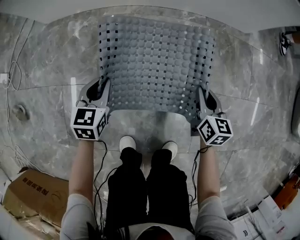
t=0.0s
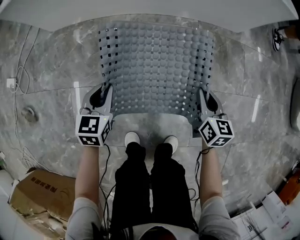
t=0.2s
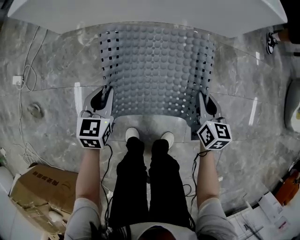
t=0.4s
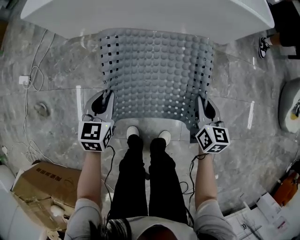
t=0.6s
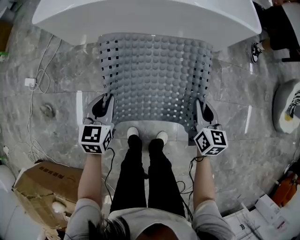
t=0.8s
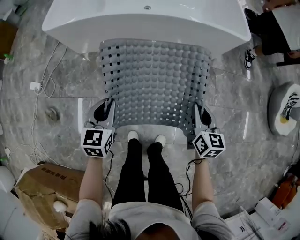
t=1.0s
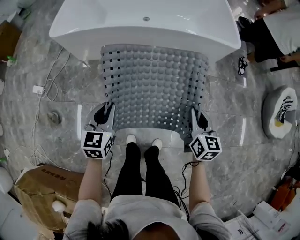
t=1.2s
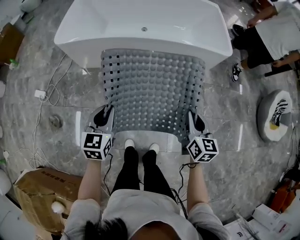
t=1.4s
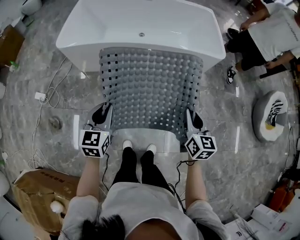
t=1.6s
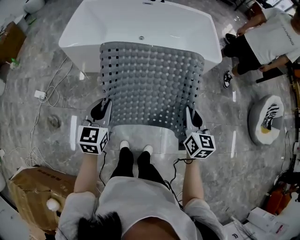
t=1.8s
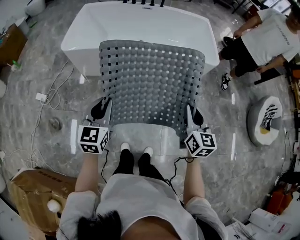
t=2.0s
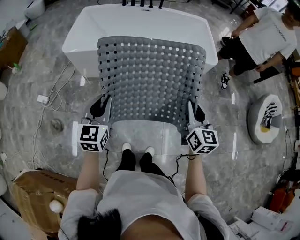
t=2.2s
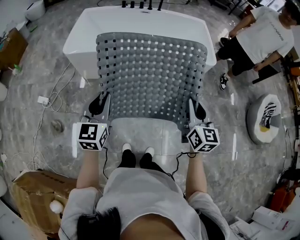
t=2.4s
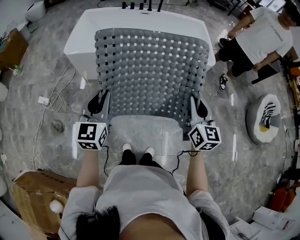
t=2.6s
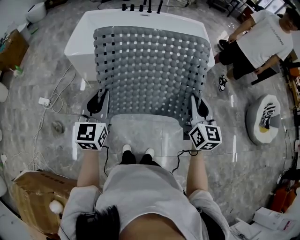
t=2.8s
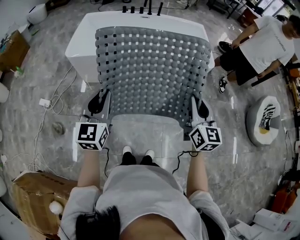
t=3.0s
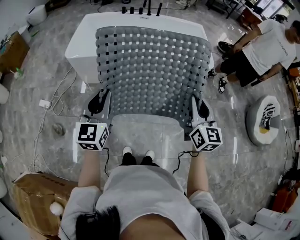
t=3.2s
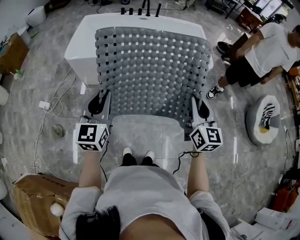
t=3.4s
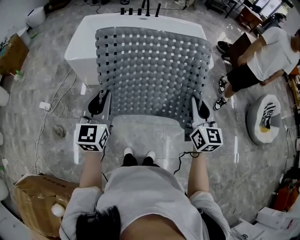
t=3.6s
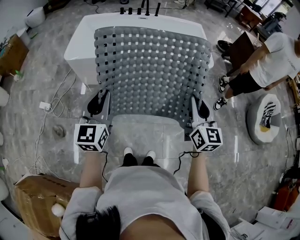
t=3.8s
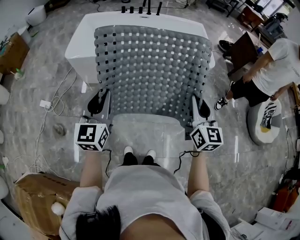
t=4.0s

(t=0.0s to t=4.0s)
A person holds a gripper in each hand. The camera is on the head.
t=0.0s - t=1.4s: The two grippers go some 60 cm upward.
t=1.4s - t=2.6s: The grippers both shift upward by approximately 20 cm.
t=2.6s - t=4.0s: The grippers stay close to where they were, moving slightly.

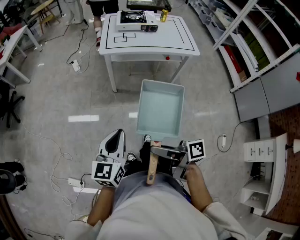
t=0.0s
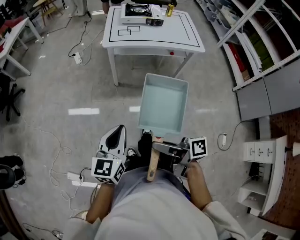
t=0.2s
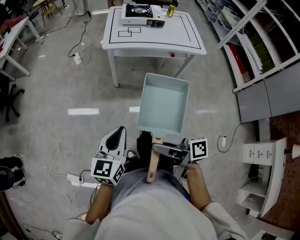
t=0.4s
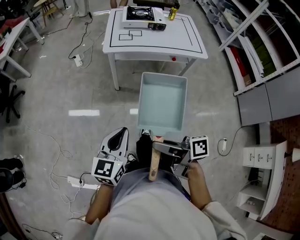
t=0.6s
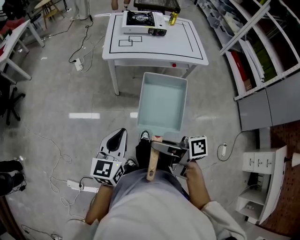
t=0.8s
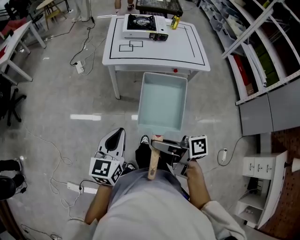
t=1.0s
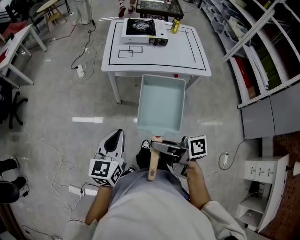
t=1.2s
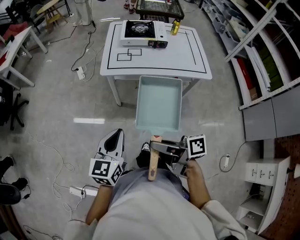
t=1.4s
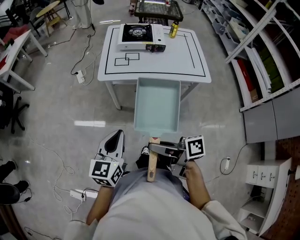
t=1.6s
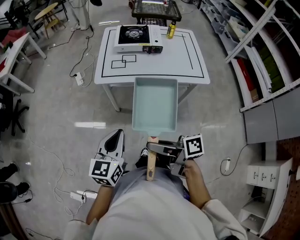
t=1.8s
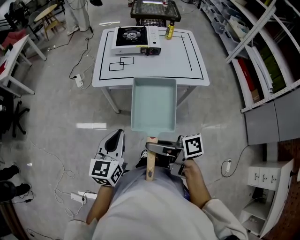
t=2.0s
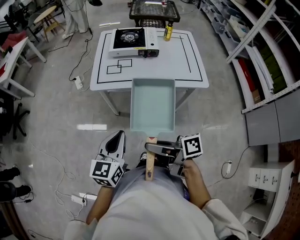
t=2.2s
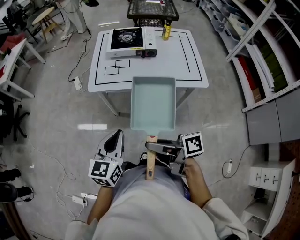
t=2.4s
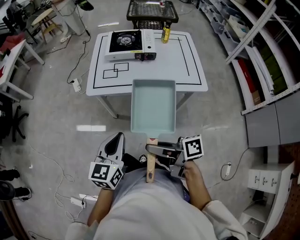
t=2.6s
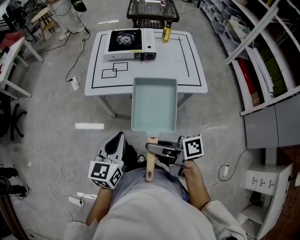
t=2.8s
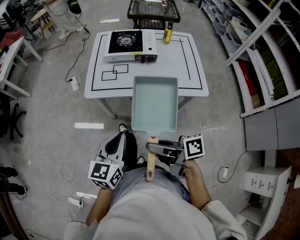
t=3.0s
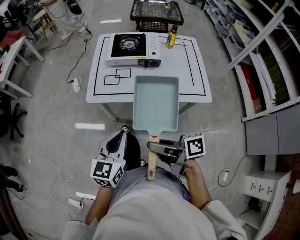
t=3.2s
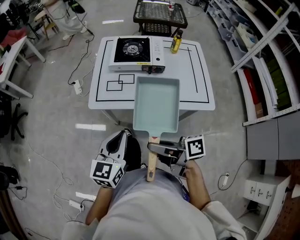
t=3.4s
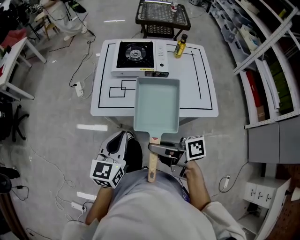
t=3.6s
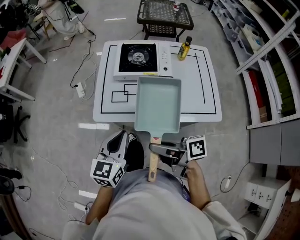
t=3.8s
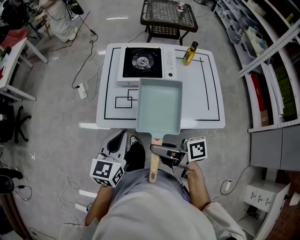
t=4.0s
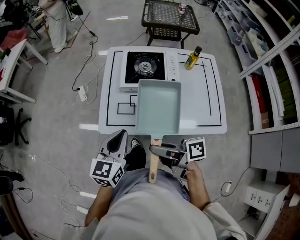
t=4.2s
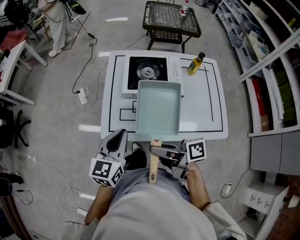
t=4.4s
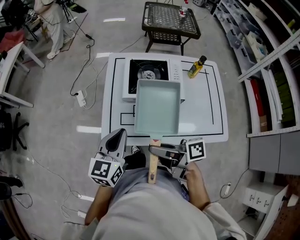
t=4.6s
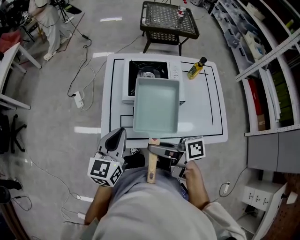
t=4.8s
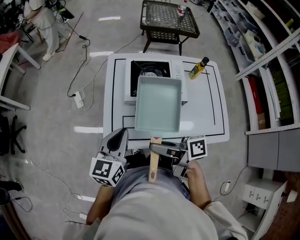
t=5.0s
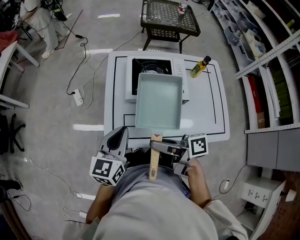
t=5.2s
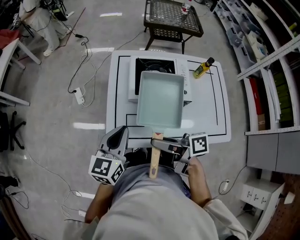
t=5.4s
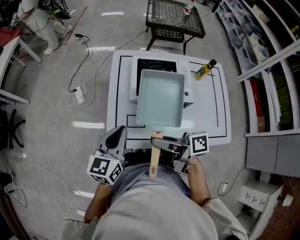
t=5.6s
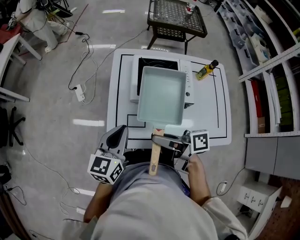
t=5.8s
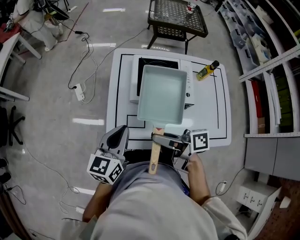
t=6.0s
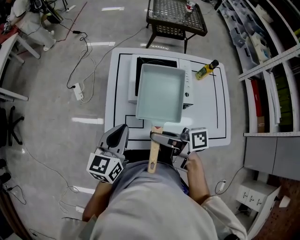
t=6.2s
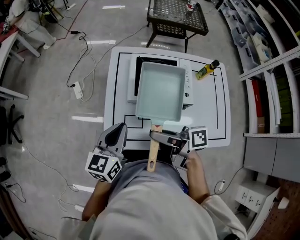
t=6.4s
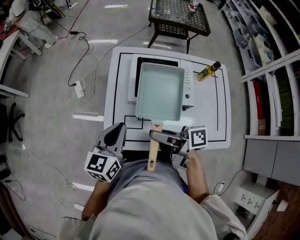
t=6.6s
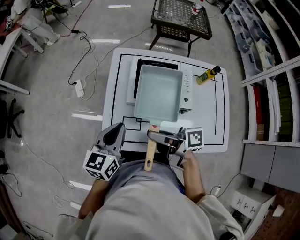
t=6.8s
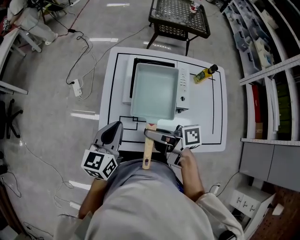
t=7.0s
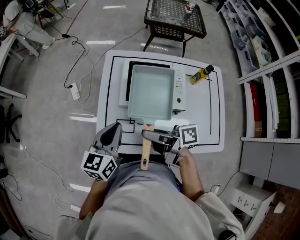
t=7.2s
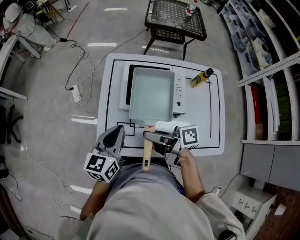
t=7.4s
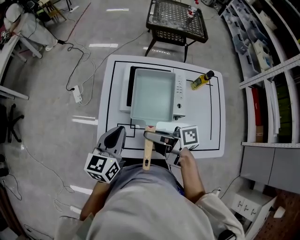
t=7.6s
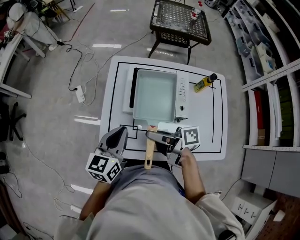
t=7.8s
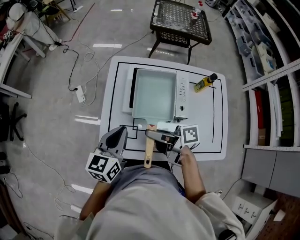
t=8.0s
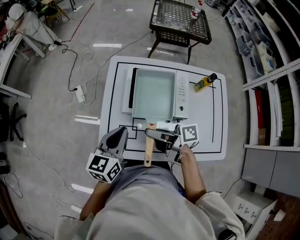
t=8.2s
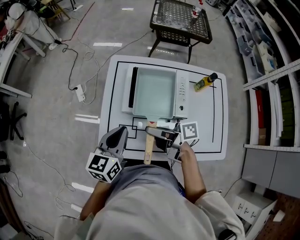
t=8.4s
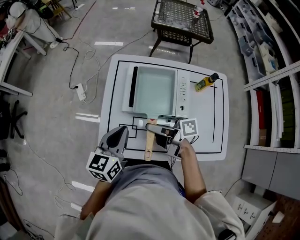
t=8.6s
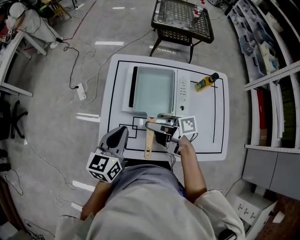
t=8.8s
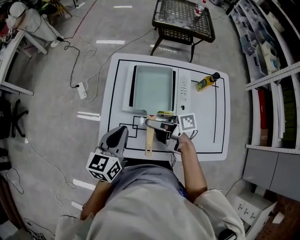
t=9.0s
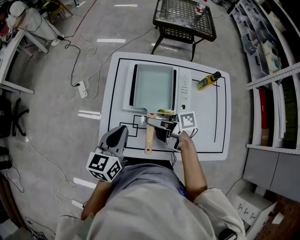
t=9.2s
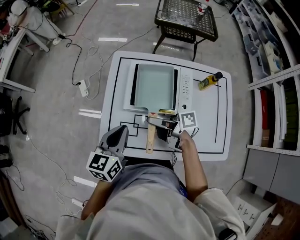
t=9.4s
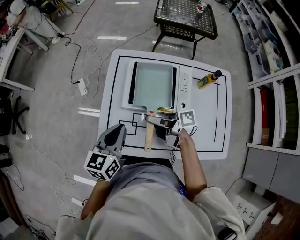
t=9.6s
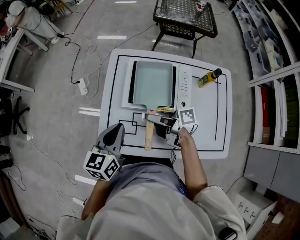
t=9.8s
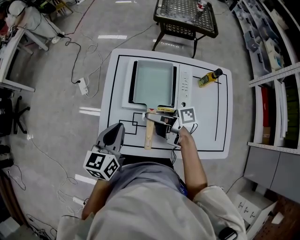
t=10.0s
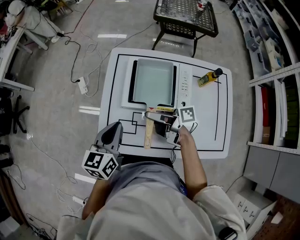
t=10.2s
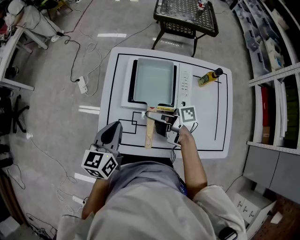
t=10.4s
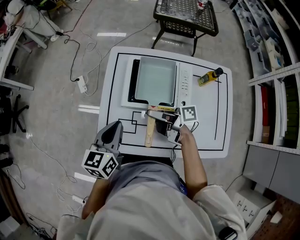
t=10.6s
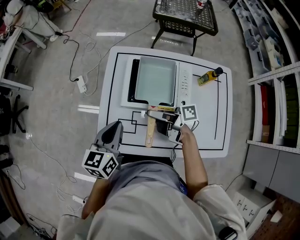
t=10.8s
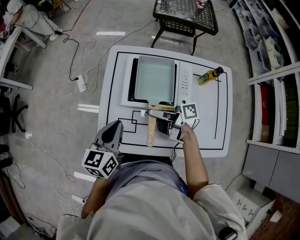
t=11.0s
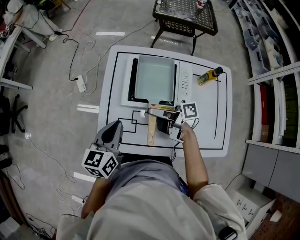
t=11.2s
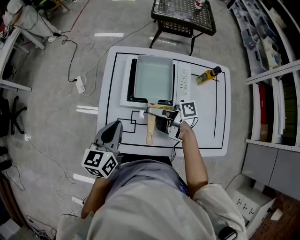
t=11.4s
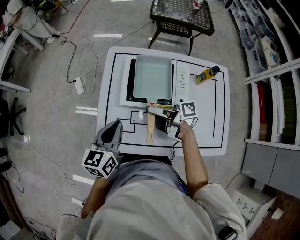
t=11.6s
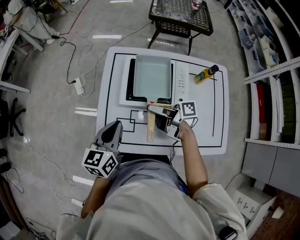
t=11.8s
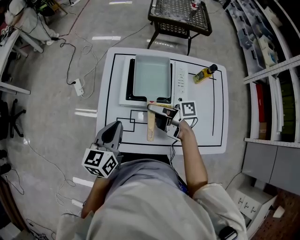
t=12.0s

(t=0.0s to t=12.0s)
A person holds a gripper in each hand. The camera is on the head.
t=0.0s - t=1.6s: Both grippers move forward and to the right, some 25 cm.
t=1.6s - t=3.0s: The grippers both shift to the right and forward by some 15 cm.
t=3.0s - t=4.4s: The grippers both shift forward by roughly 30 cm.
t=4.4s - t=6.0s: Both grippers travel together forward, about 10 cm.
t=6.0s - t=7.6s: Both grippers move to the right, approximately 5 cm.
t=7.6s - t=9.0s: The right gripper moves roughly 5 cm.
t=9.0s - t=12.0s: The grippers make only small movements.

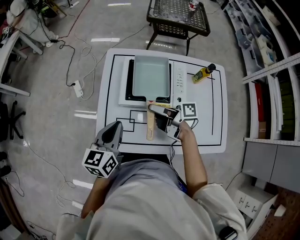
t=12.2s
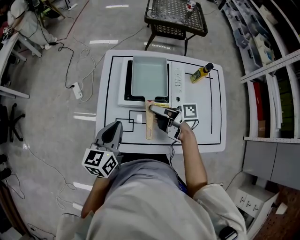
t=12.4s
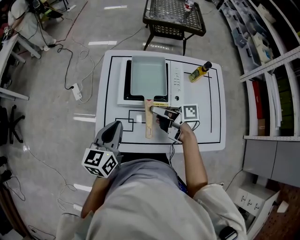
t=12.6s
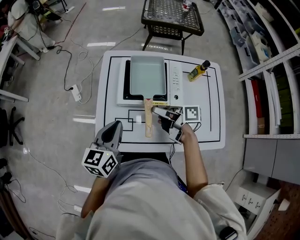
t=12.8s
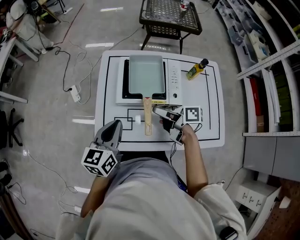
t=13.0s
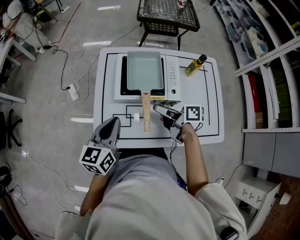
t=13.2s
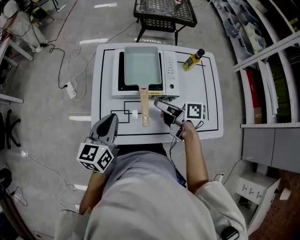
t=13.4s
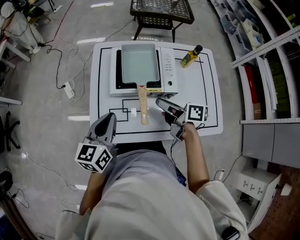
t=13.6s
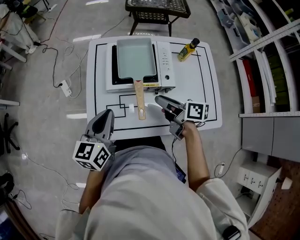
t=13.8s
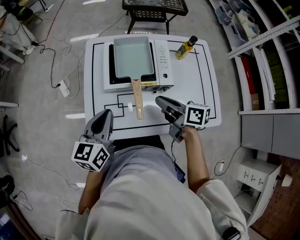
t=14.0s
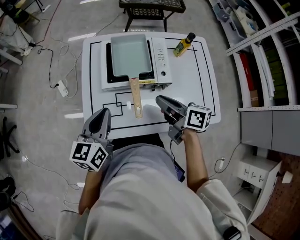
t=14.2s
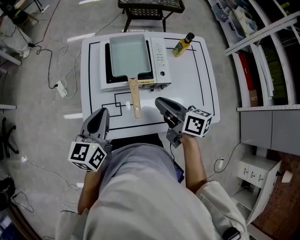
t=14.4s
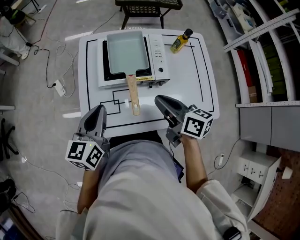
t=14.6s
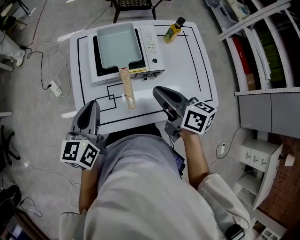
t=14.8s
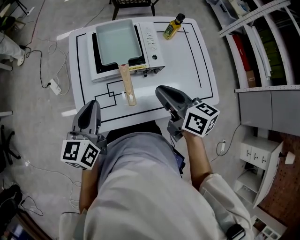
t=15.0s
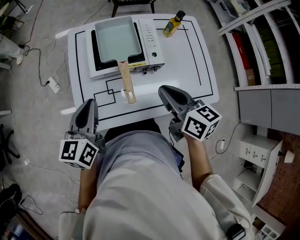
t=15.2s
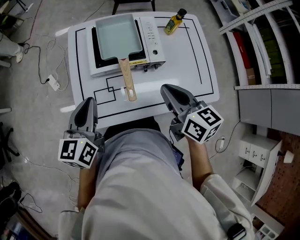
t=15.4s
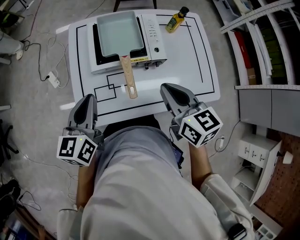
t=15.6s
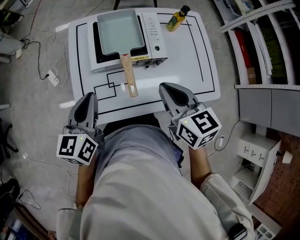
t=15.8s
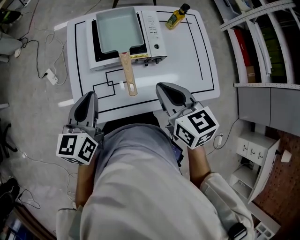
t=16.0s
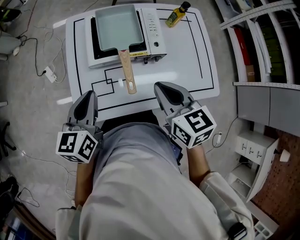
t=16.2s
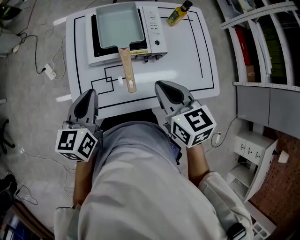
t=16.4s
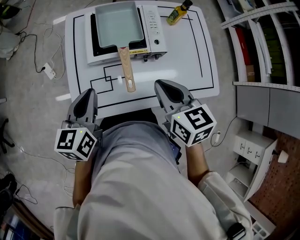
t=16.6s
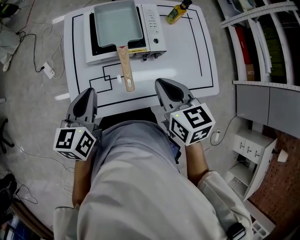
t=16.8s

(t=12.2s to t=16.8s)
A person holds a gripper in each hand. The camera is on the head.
t=12.2s - t=13.8s: The right gripper shifts approximately 10 cm backward and to the right, turns by roughly 30 degrees, and closes up.
t=13.8s - t=15.2s: The right gripper heads upward and backward, covering some 10 cm, changes its angle by about 30 degrees, and closes.
t=15.2s - t=16.8s: The right gripper turns by some 20 degrees.

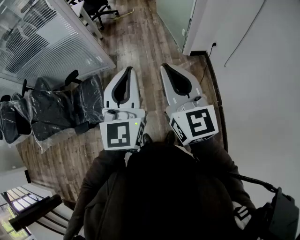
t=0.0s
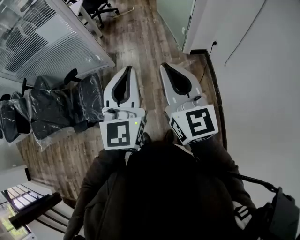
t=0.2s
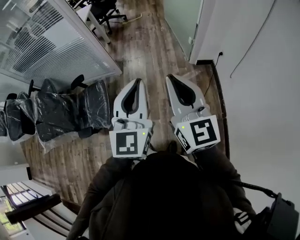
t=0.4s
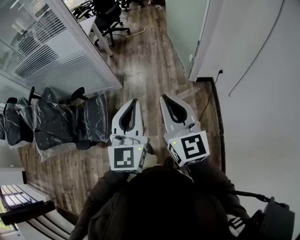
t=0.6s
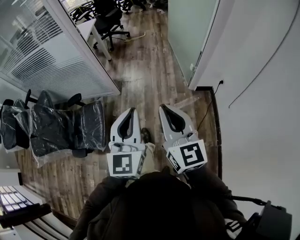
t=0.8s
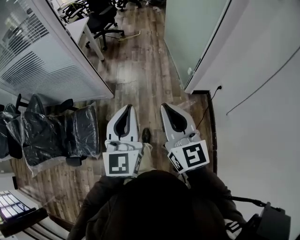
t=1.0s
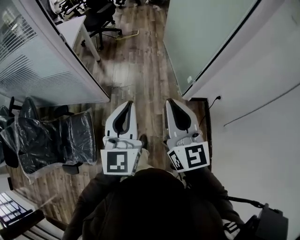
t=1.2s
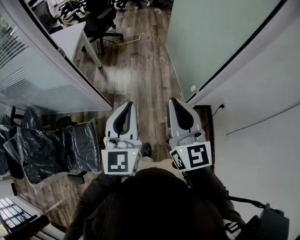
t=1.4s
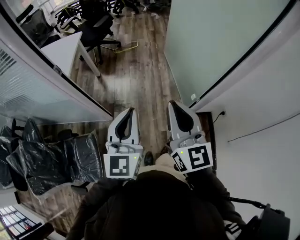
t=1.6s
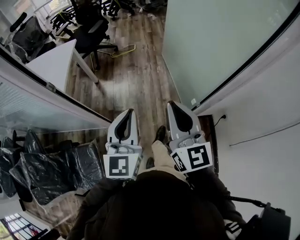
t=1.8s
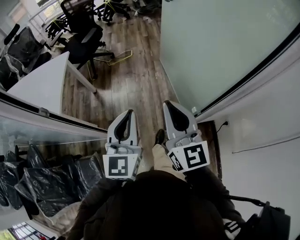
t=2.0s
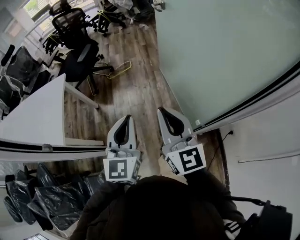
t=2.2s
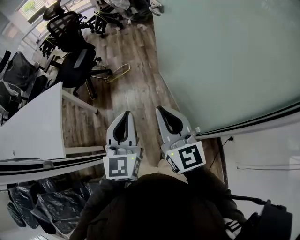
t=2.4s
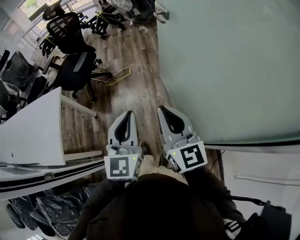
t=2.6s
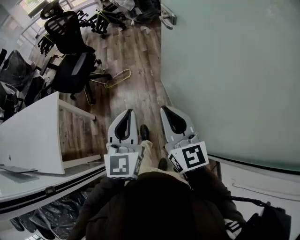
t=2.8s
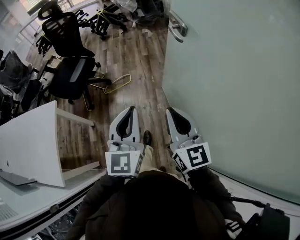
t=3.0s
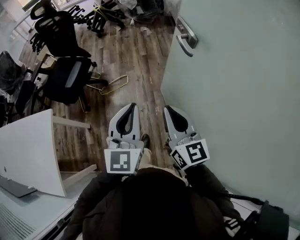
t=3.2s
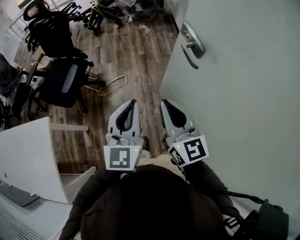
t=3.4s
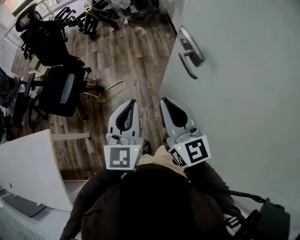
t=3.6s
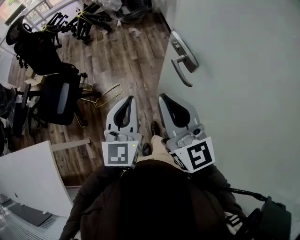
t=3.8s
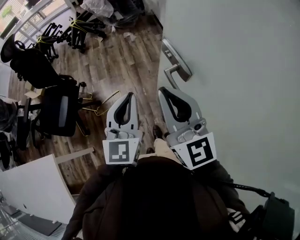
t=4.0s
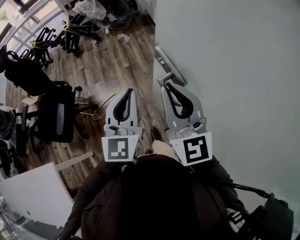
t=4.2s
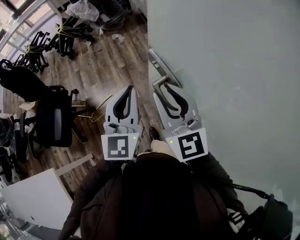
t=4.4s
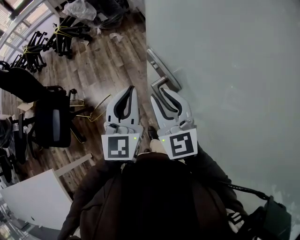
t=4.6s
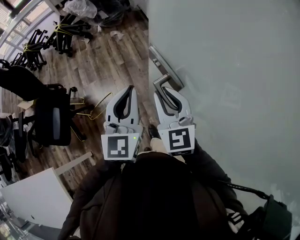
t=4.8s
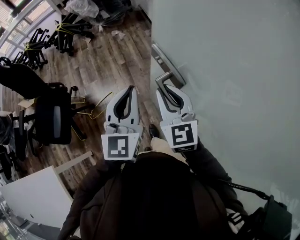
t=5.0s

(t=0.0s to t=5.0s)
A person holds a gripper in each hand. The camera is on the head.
t=0.0s - t=1.6s: The pair of grippers is taken forward, some 50 cm.
t=1.6s - t=3.4s: The pair of grippers is taken forward, approximately 80 cm.
t=3.4s - t=5.0s: Both grippers travel together forward and to the right, approximately 25 cm. The right gripper swivels roughly 30 degrees.
